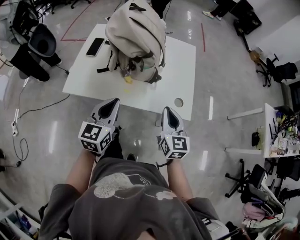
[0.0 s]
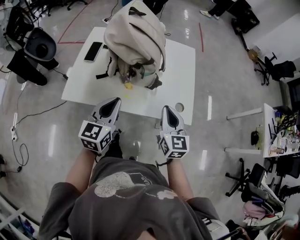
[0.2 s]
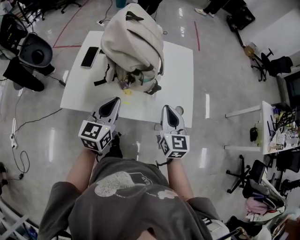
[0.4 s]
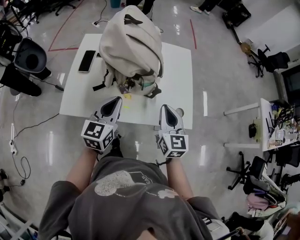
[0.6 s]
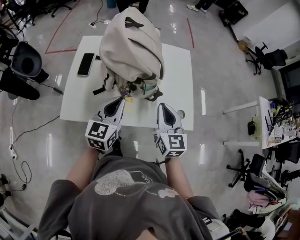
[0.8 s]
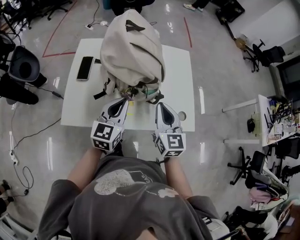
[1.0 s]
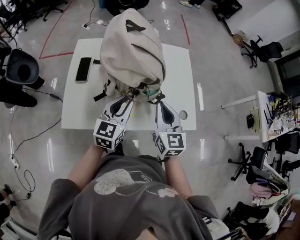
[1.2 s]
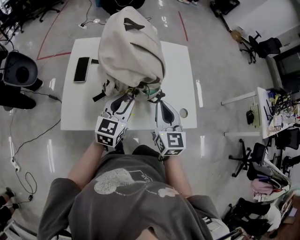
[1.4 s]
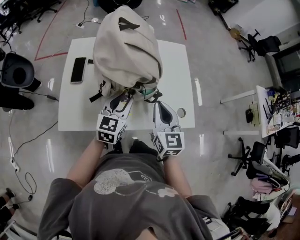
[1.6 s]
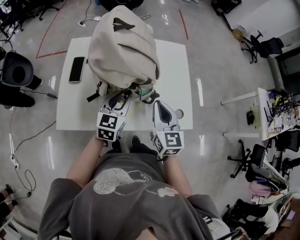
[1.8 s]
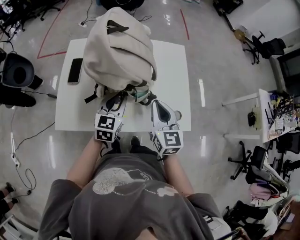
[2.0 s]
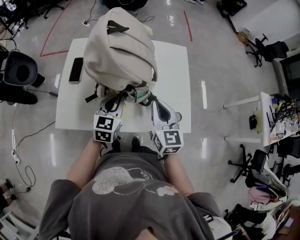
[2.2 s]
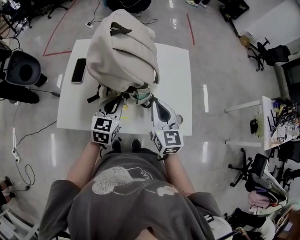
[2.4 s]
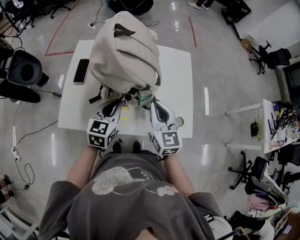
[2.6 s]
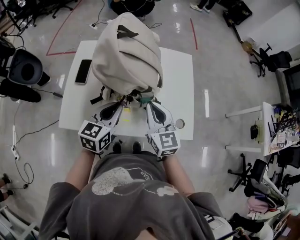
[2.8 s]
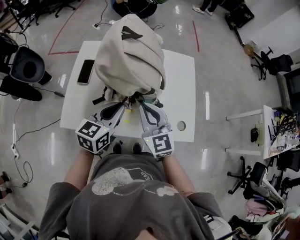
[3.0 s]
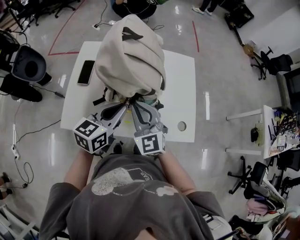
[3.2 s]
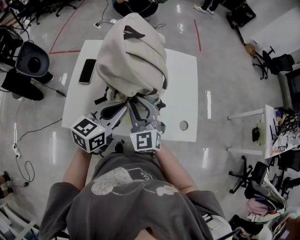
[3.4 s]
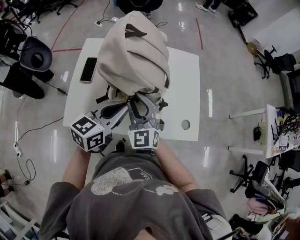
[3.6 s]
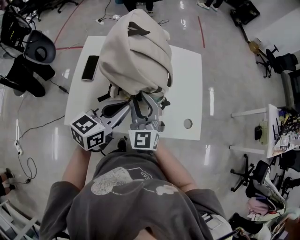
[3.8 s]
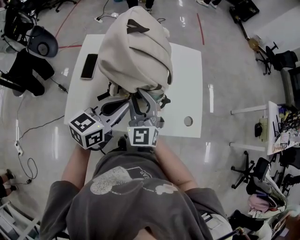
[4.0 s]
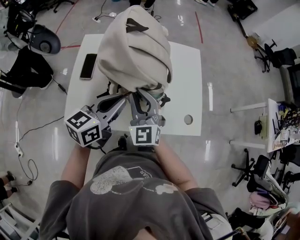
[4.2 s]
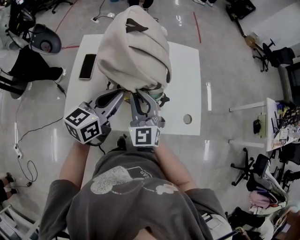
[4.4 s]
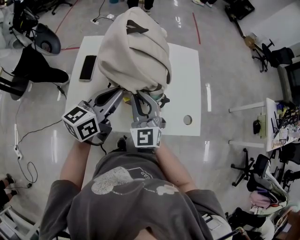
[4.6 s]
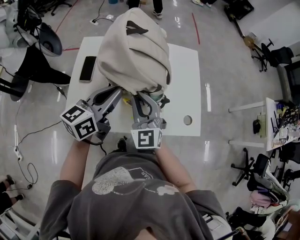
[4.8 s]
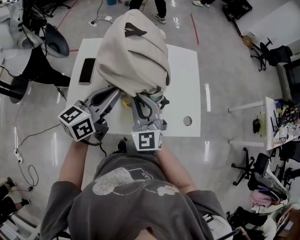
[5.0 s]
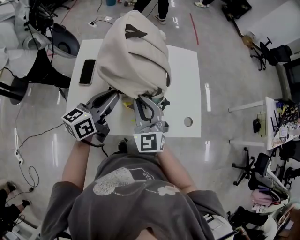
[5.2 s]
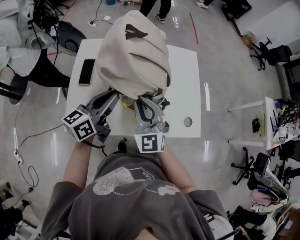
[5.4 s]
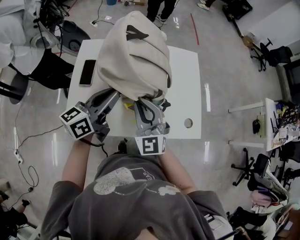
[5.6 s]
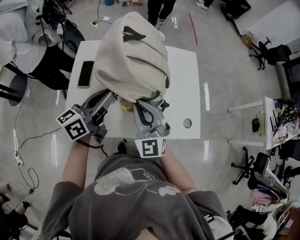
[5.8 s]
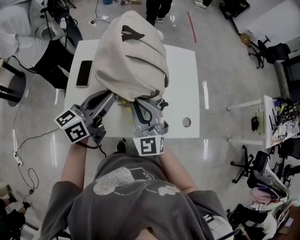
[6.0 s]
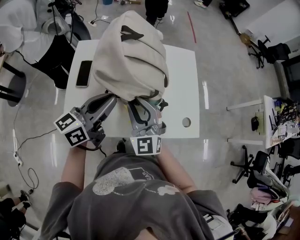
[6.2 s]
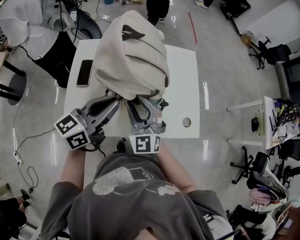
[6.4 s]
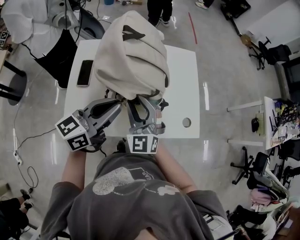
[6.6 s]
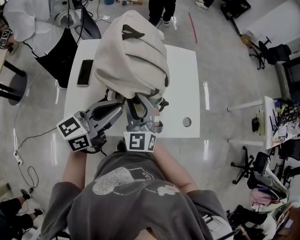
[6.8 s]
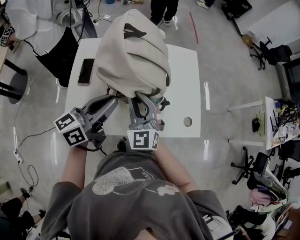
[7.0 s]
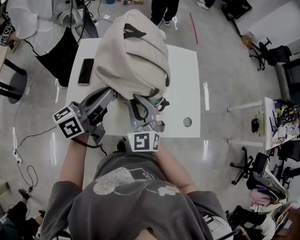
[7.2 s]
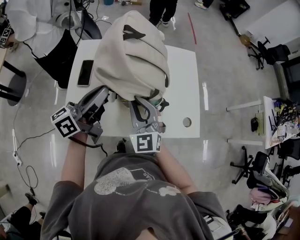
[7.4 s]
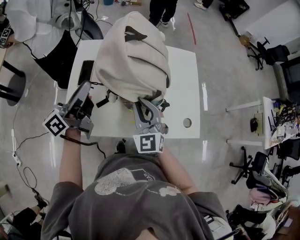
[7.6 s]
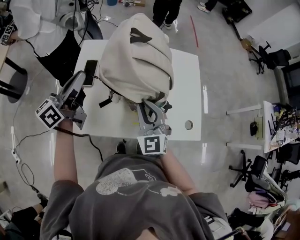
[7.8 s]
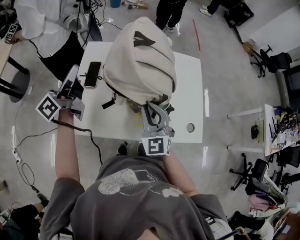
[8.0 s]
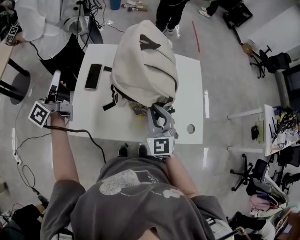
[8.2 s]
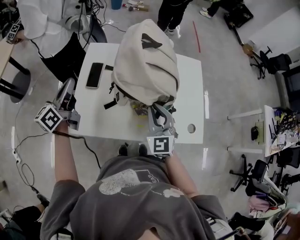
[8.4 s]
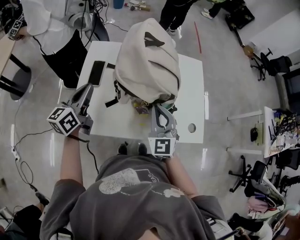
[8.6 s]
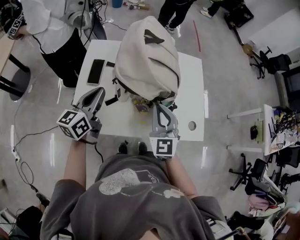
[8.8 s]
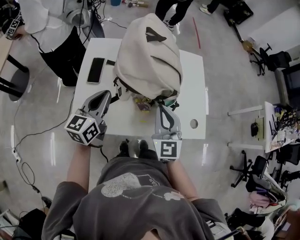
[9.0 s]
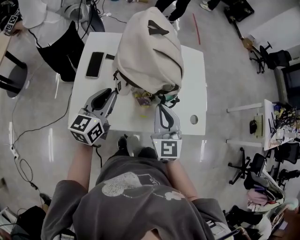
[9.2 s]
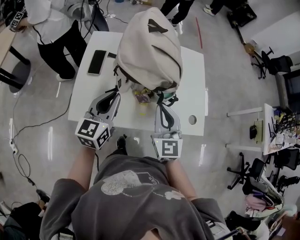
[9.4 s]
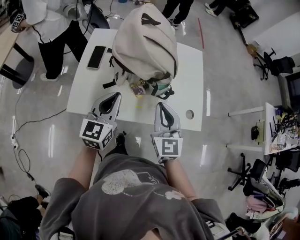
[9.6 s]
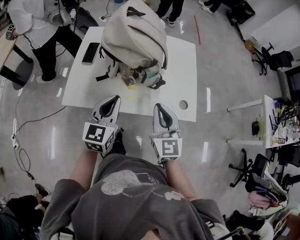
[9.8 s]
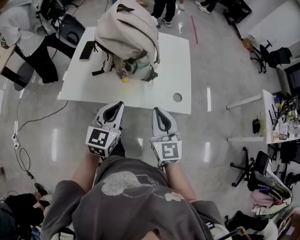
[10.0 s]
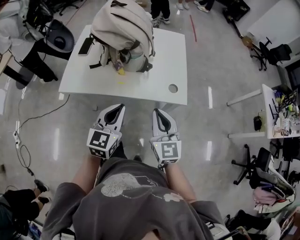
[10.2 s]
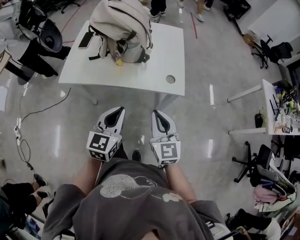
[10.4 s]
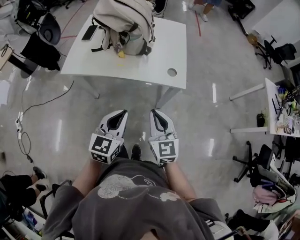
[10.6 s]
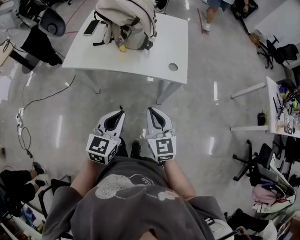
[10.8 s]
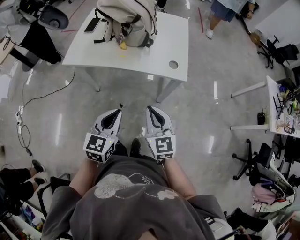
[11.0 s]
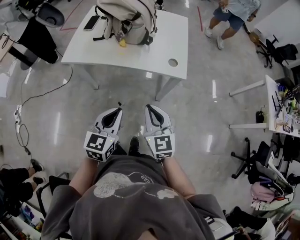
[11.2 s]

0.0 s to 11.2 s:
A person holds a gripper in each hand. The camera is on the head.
0.0 to 1.6 s: The right gripper is displaced forward and to the left by approximately 15 cm. The left gripper moves forward, about 20 cm, and opens its fingers.
1.6 to 3.2 s: The left gripper moves upward, approximately 5 cm, and closes its fingers. Meanwhile the right gripper goes some 10 cm to the left, and rotates roughly 30 degrees.
3.2 to 4.8 s: The left gripper moves some 5 cm.
4.8 to 6.4 s: The right gripper opens.
6.4 to 8.0 s: The right gripper closes. The left gripper is displaced to the left by about 20 cm, and rotates about 40 degrees.
8.0 to 9.6 s: The left gripper is displaced to the right and backward by about 25 cm, and rotates around the line of its fingers by some 40 degrees, clockwise from behind, while the right gripper shifts some 10 cm backward and to the right.
9.6 to 11.2 s: The left gripper is displaced backward and to the right by about 40 cm, while the right gripper is displaced backward by approximately 30 cm.

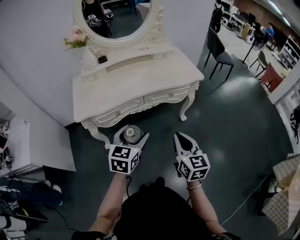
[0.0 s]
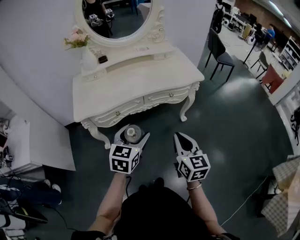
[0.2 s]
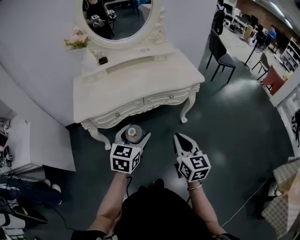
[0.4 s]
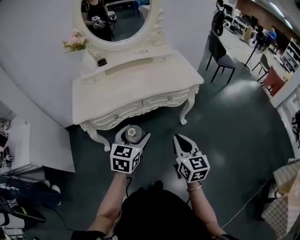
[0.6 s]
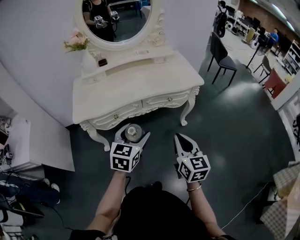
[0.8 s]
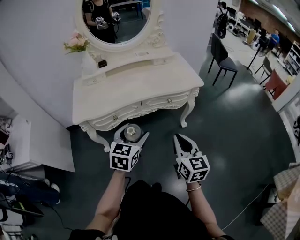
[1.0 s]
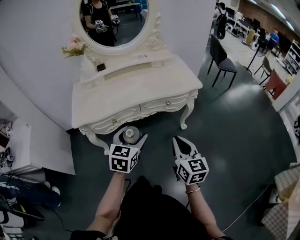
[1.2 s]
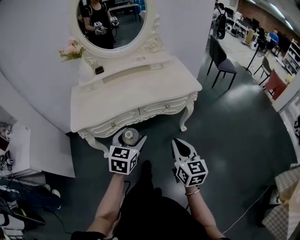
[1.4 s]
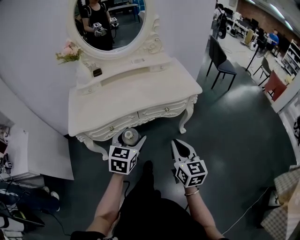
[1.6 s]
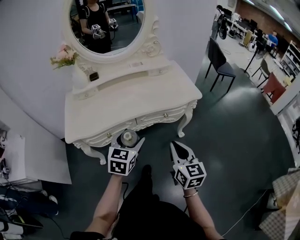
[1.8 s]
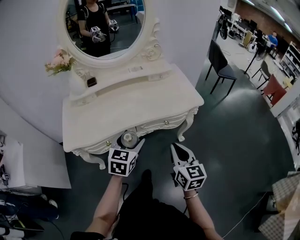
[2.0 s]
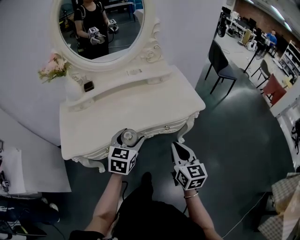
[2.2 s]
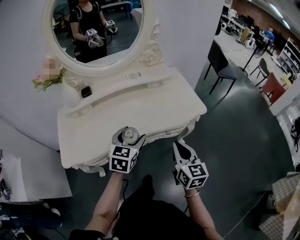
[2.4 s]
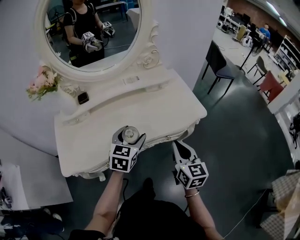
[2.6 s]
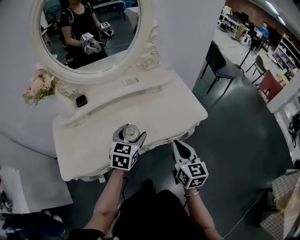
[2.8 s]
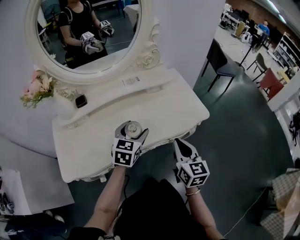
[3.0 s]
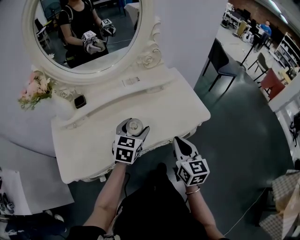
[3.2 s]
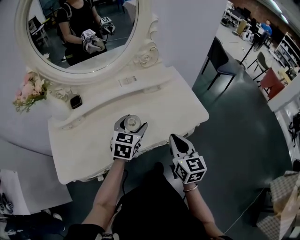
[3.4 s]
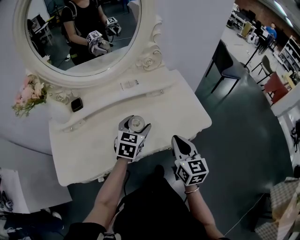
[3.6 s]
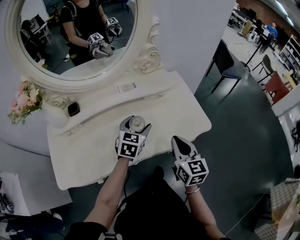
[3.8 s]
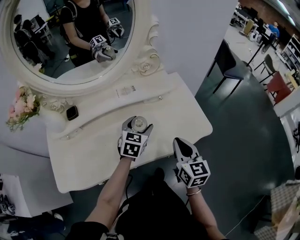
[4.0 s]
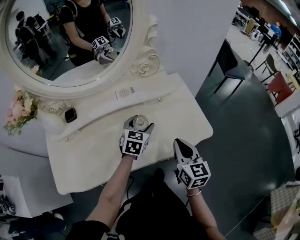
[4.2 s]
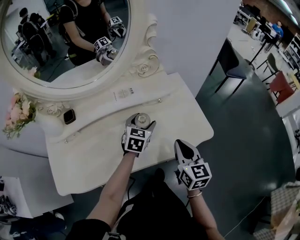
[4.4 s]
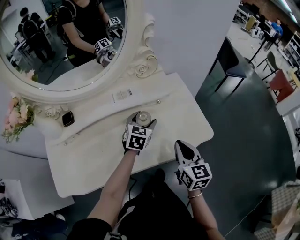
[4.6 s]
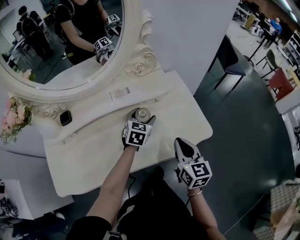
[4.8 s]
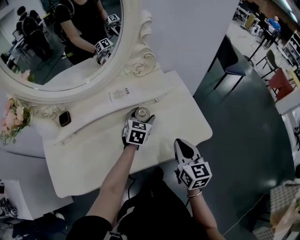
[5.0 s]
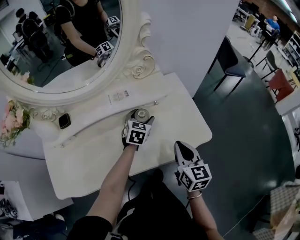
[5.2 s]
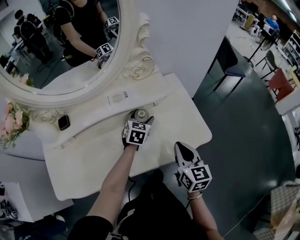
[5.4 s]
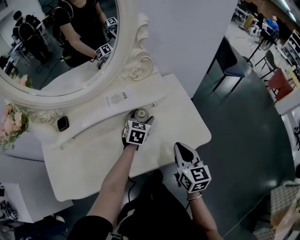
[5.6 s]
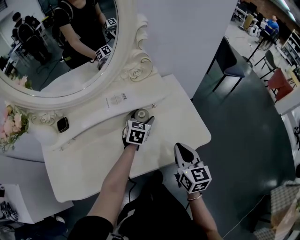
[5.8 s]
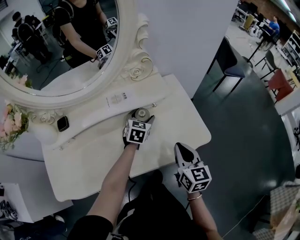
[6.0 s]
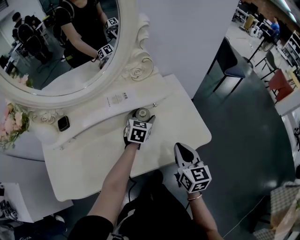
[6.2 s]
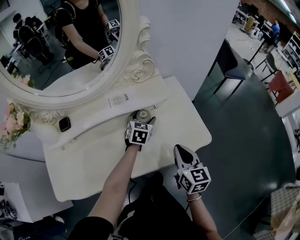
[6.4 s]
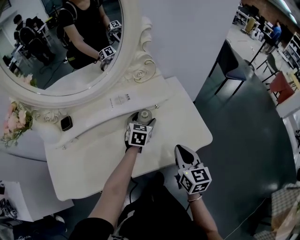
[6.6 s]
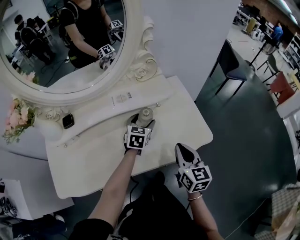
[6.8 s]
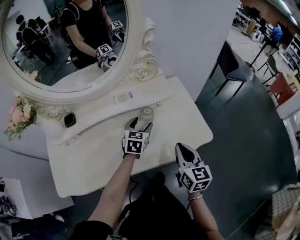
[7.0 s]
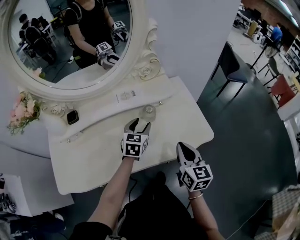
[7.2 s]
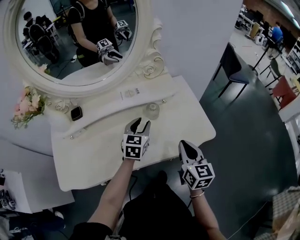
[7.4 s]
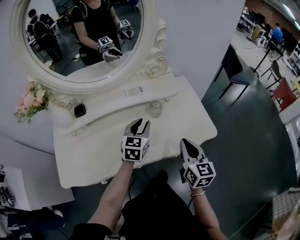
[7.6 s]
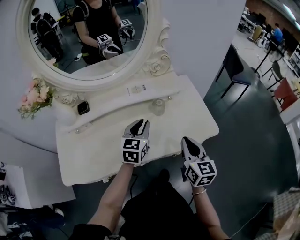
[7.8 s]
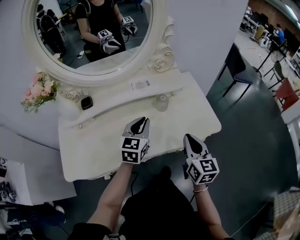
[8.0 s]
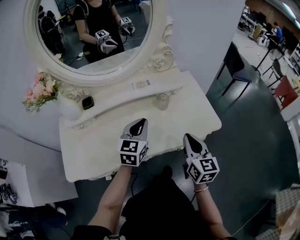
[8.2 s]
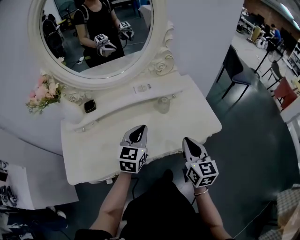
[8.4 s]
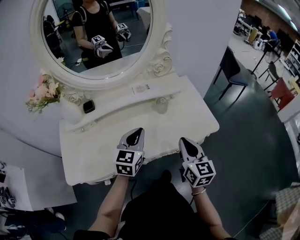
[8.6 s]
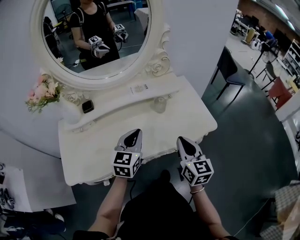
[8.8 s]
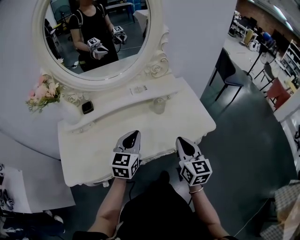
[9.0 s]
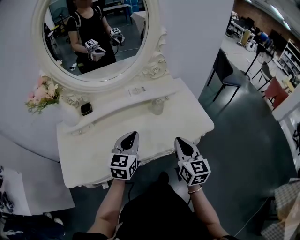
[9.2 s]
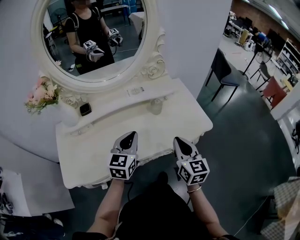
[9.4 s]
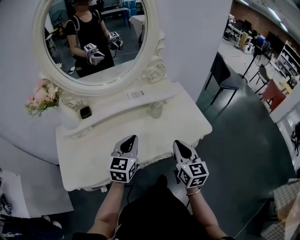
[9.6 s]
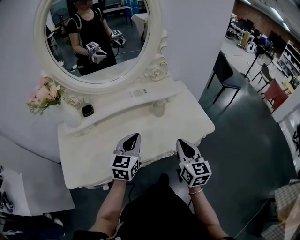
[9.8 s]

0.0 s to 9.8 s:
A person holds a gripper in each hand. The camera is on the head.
0.0 to 1.4 s: The left gripper moves forward, approximately 5 cm. The right gripper changes place by some 5 cm.
1.4 to 2.8 s: Both grippers travel together forward, about 25 cm.
2.8 to 4.2 s: The grippers both shift forward by about 15 cm.
4.2 to 5.6 s: The left gripper heads forward, covering roughly 10 cm.
5.6 to 7.0 s: The left gripper goes approximately 5 cm backward.
7.0 to 8.4 s: The right gripper is displaced backward by some 5 cm; the left gripper heads backward, upward and to the left, covering about 20 cm, and closes its fingers.
8.4 to 9.8 s: The grippers move only a little.

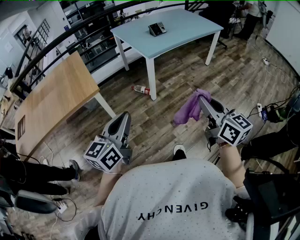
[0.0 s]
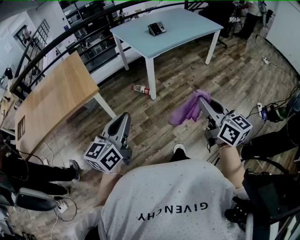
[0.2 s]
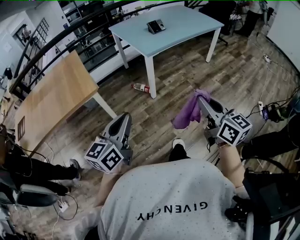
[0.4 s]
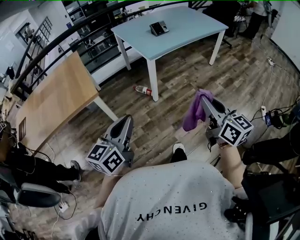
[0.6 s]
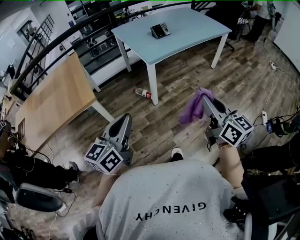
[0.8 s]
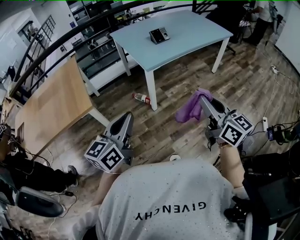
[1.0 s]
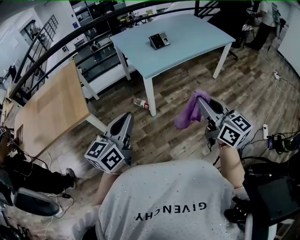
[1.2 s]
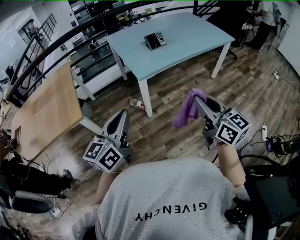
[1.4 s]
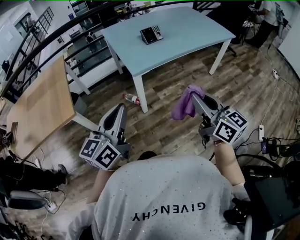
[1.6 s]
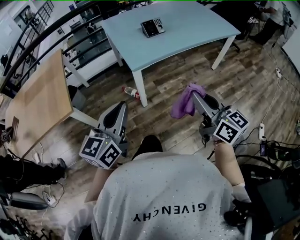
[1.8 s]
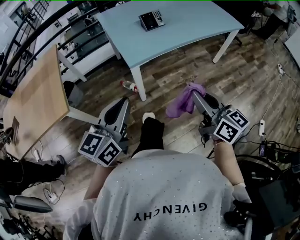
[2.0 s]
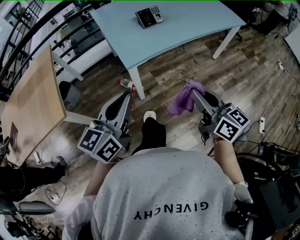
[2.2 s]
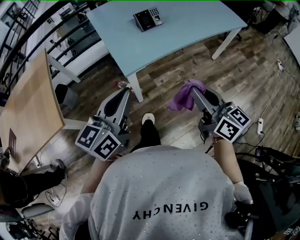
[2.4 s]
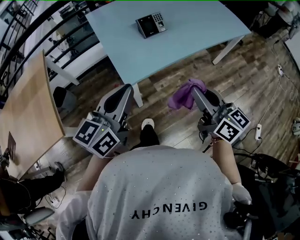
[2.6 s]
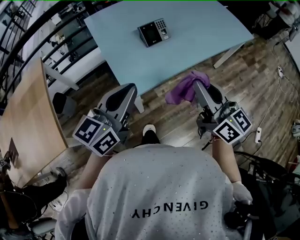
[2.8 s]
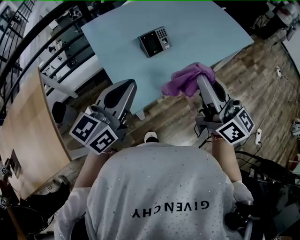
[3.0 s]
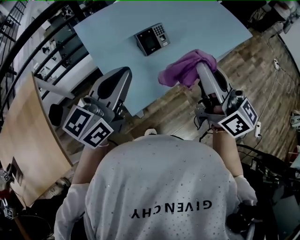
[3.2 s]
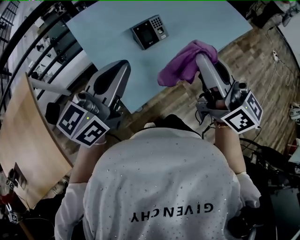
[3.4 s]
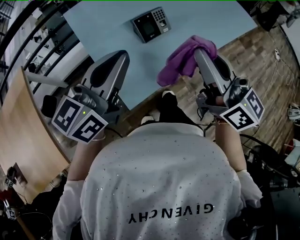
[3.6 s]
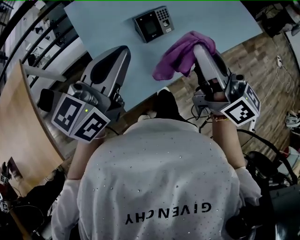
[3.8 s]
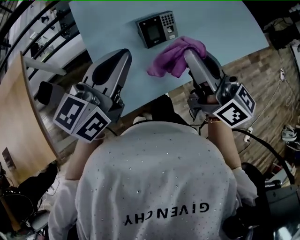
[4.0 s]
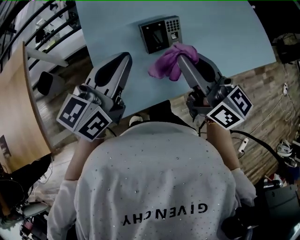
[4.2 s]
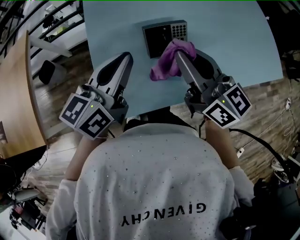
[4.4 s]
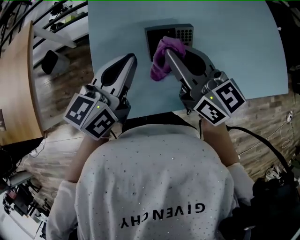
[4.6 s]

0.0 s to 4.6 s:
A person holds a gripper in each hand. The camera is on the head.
0.0 to 1.6 s: The two grippers go approximately 30 cm forward and to the right.
1.6 to 3.0 s: The two grippers go some 40 cm forward.
3.0 to 4.6 s: The left gripper moves some 25 cm, and swivels roughly 30 degrees, while the right gripper moves some 30 cm, and changes its angle by some 40 degrees.
